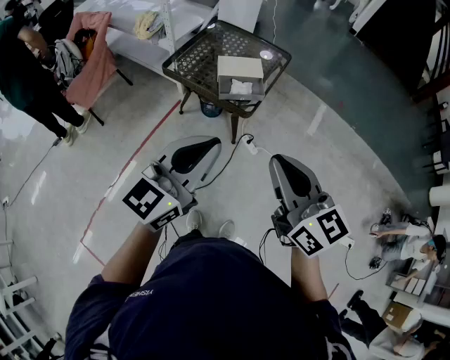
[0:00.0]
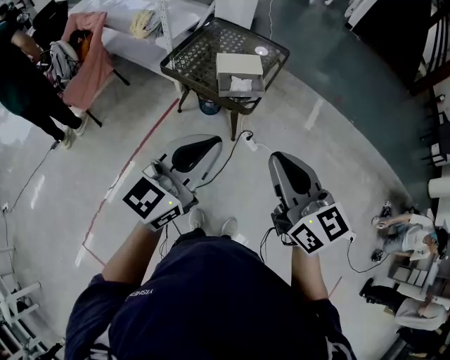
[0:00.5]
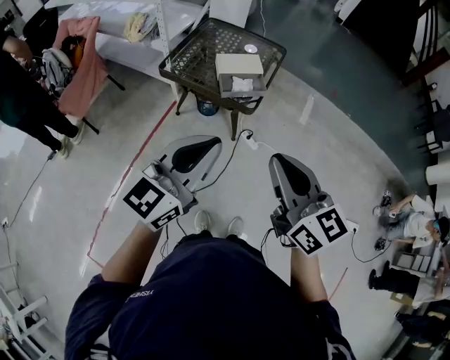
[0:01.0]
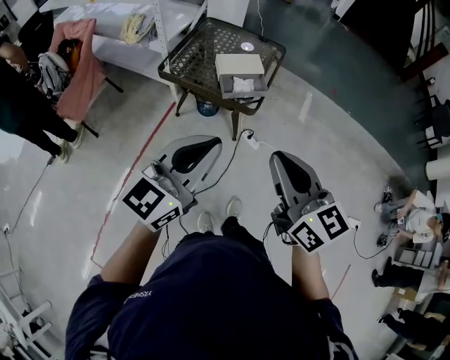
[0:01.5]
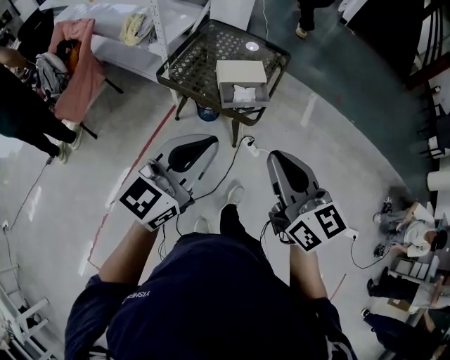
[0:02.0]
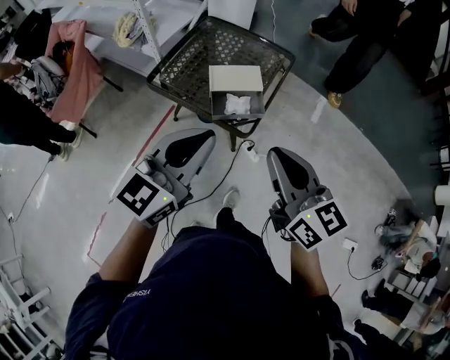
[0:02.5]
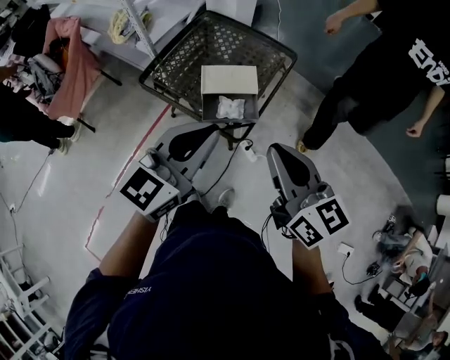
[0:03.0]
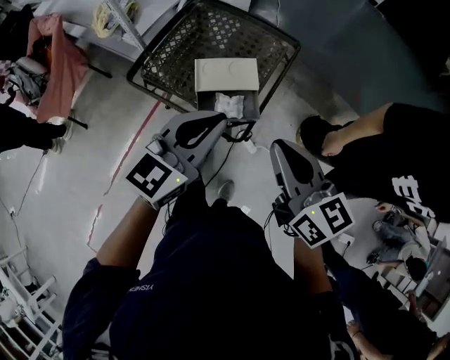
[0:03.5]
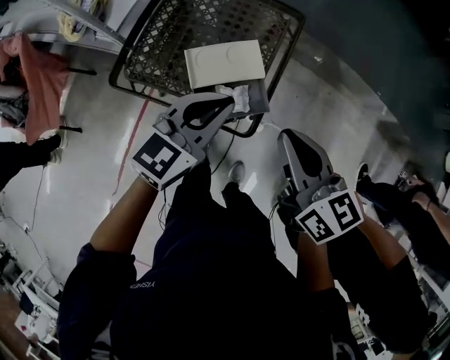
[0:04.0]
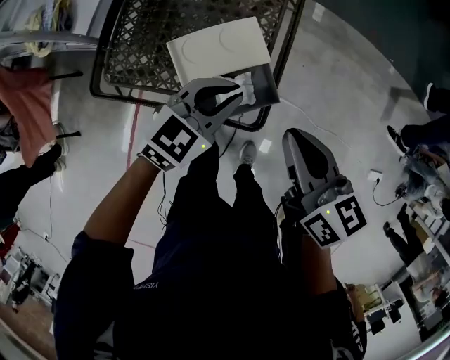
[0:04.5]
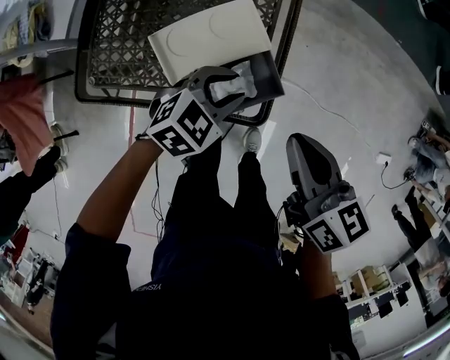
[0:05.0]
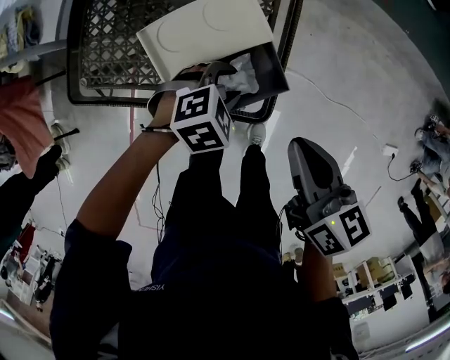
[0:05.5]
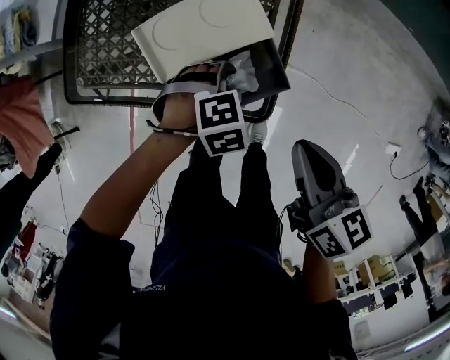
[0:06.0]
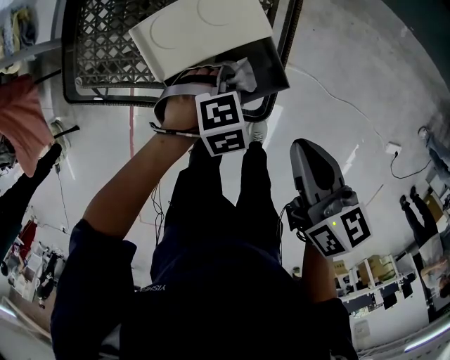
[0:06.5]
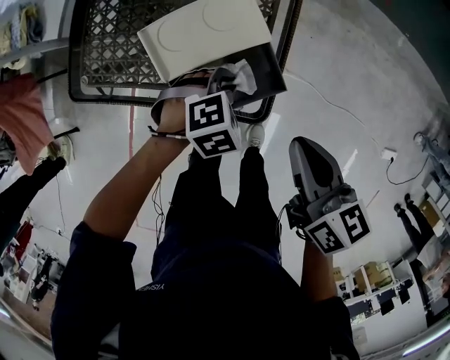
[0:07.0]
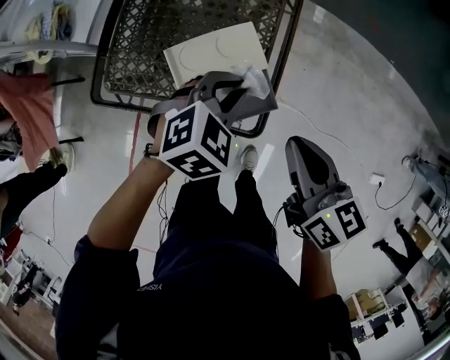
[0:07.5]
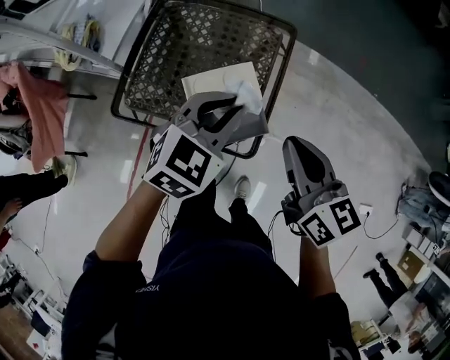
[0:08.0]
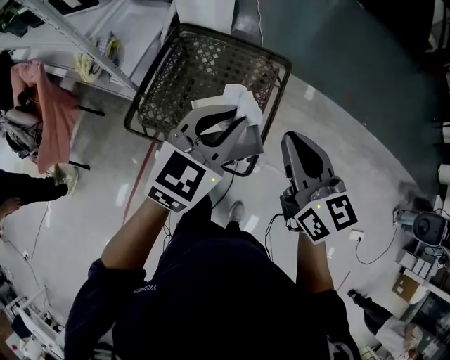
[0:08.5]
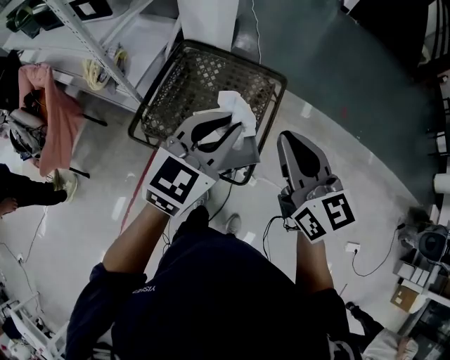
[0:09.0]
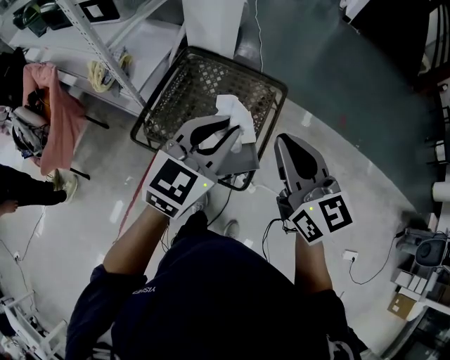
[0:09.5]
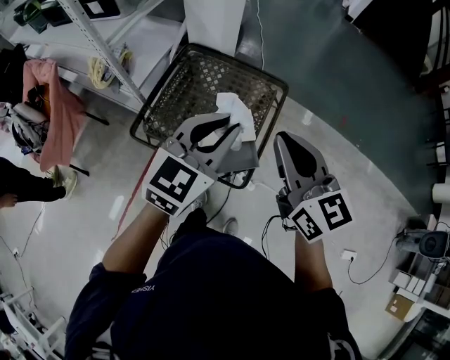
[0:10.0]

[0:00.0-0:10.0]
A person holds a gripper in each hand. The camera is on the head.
0.0 to 2.0 s: The two grippers go approximately 10 cm to the left and forward.
2.0 to 4.0 s: The left gripper travels forward and downward by roughly 40 cm. Meanwhile the right gripper is displaced forward by approximately 35 cm.
4.0 to 6.0 s: The right gripper goes roughly 20 cm downward, and rotates about 30 degrees. The left gripper moves downward, about 30 cm, points its fingers about 60 degrees further downward, and opens.
6.0 to 8.0 s: The left gripper travels upward by about 30 cm, tilts its fingers roughly 40 degrees upward, and closes its fingers, while the right gripper shifts approximately 20 cm upward, and rotates about 20 degrees.
8.0 to 10.0 s: Both grippers move upward, about 15 cm. The left gripper rotates approximately 20 degrees. The right gripper changes its angle by roughly 20 degrees.

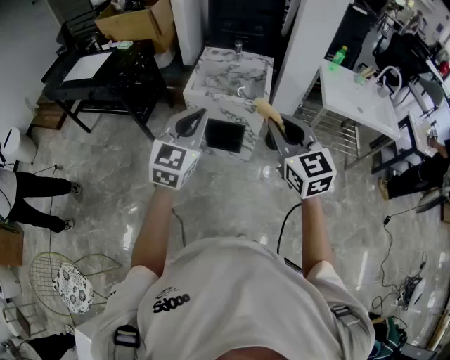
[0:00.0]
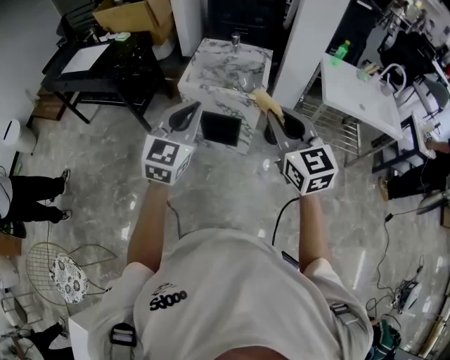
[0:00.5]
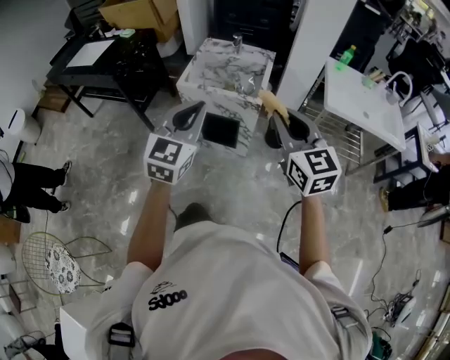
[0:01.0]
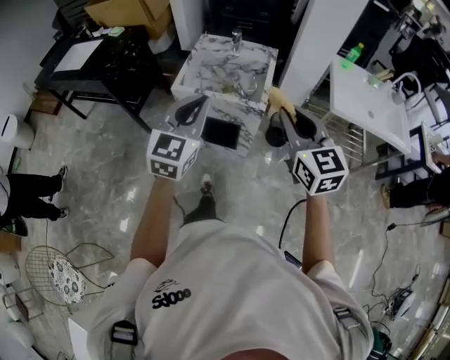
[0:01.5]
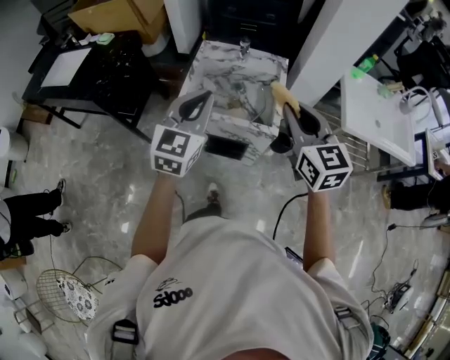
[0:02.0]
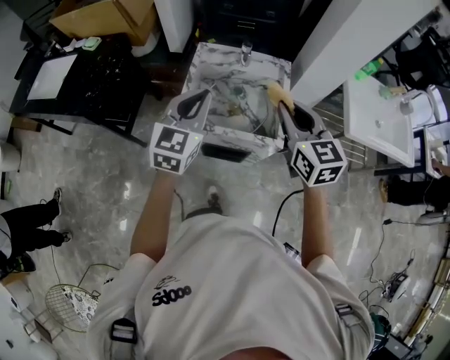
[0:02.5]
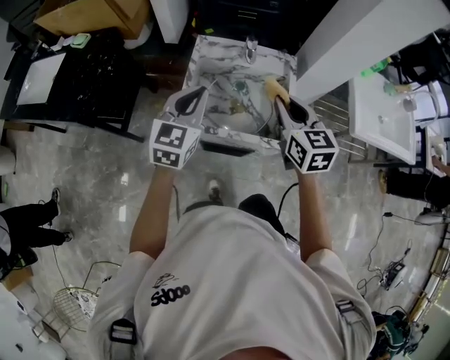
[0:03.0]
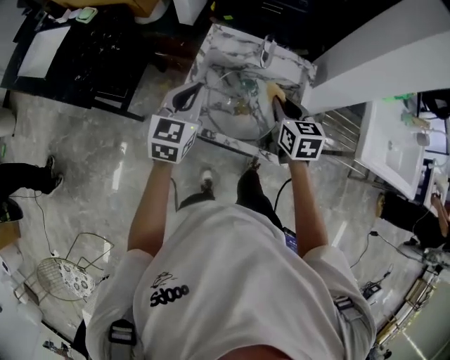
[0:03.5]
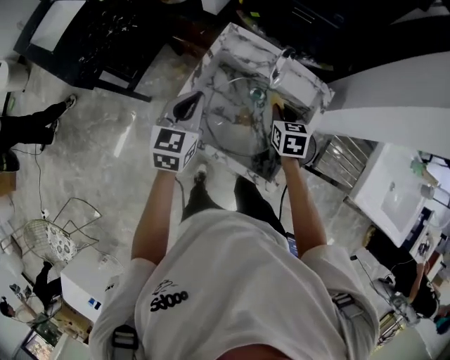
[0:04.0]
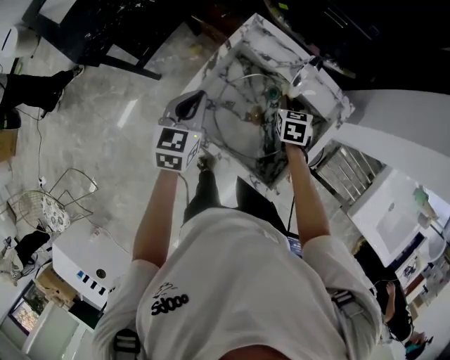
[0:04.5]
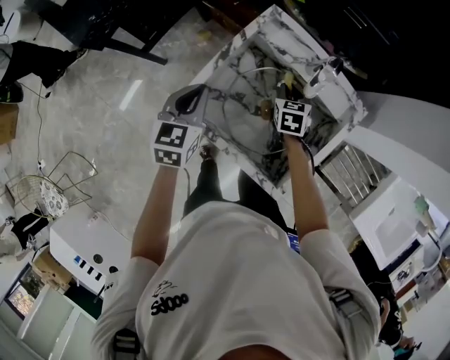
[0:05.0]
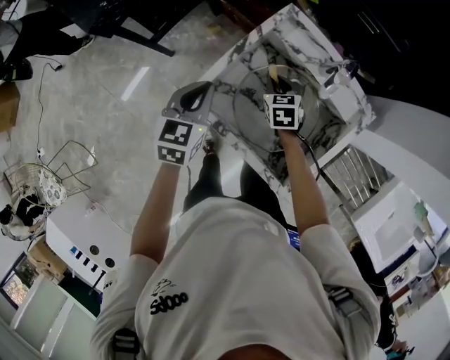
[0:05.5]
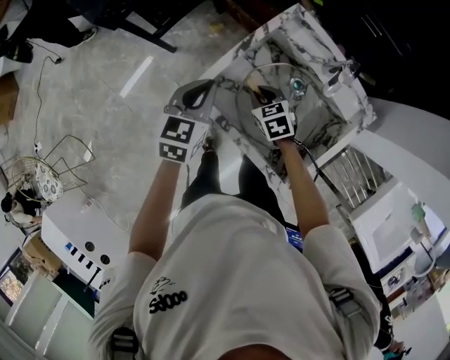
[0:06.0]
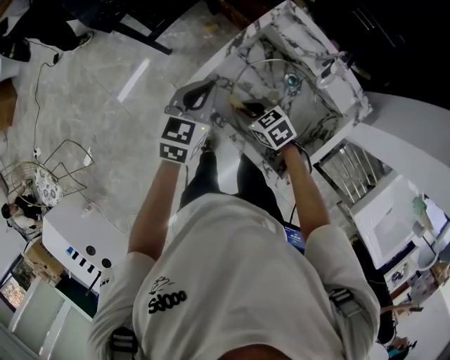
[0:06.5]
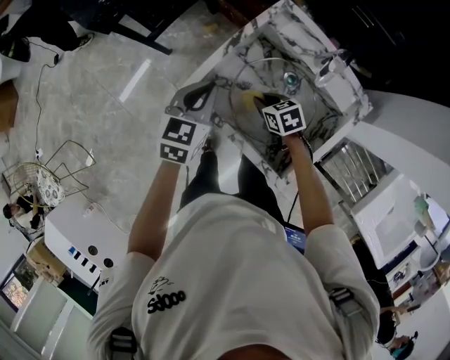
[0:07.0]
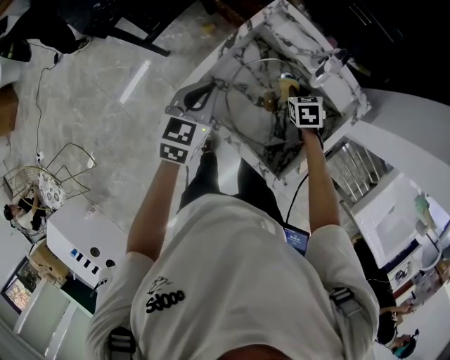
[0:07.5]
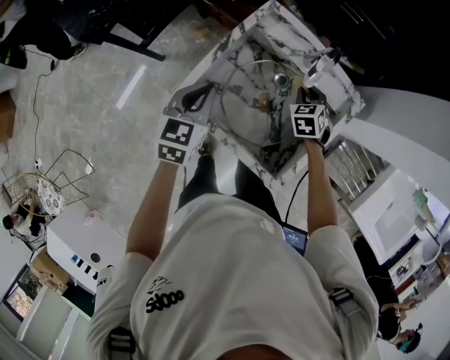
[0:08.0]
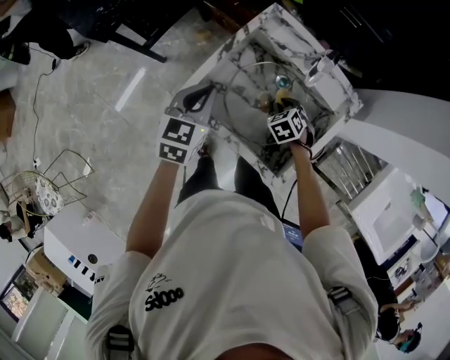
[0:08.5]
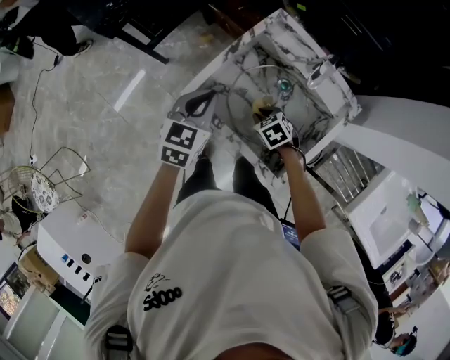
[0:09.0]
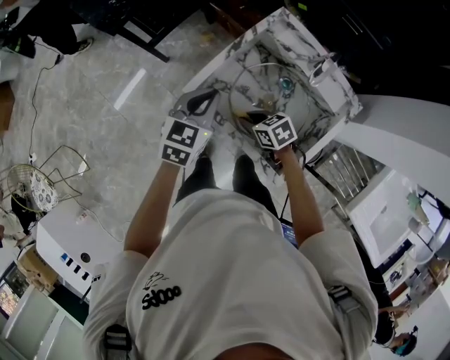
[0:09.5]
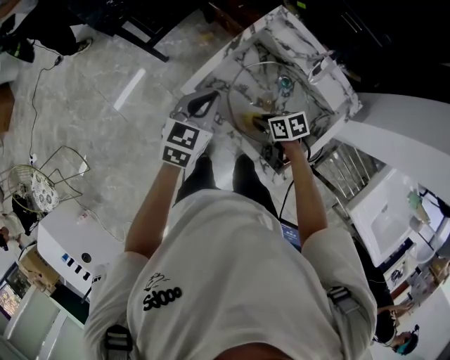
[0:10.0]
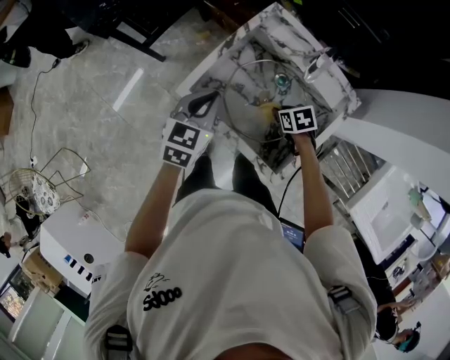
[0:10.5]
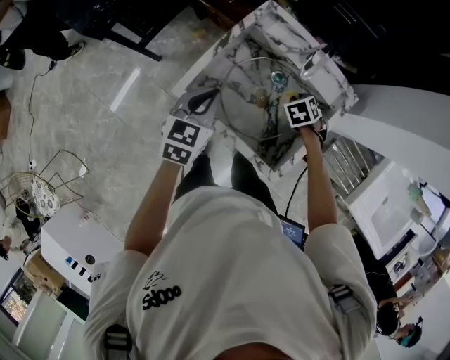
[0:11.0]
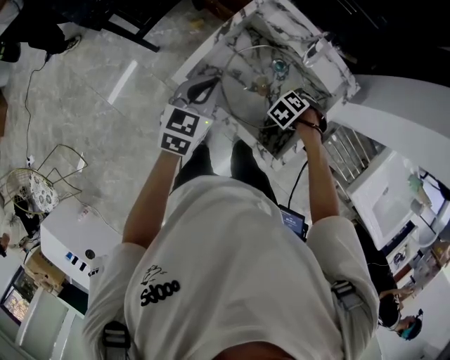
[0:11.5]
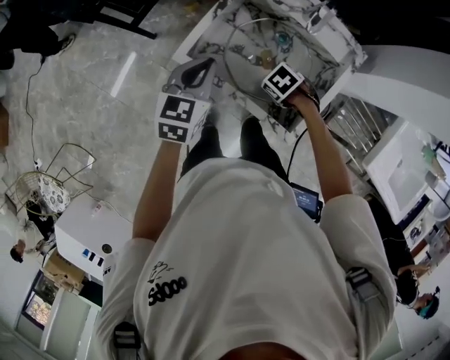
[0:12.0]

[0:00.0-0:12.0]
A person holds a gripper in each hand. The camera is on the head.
0.0 to 2.0 s: Both grippers travel together forward, some 30 cm.
2.0 to 4.0 s: The right gripper shifts roughly 50 cm forward and downward, and tilts its fingers about 40 degrees downward. The left gripper moves forward and downward, approximately 30 cm, and changes its angle by roughly 30 degrees.
4.0 to 6.0 s: The left gripper changes place by some 10 cm; the right gripper changes place by roughly 20 cm, and swivels about 40 degrees.
6.0 to 8.0 s: The right gripper moves roughly 20 cm, and changes its angle by roughly 30 degrees.
8.0 to 10.0 s: The right gripper changes place by roughly 20 cm, and changes its angle by about 50 degrees.
10.0 to 12.0 s: The right gripper changes its angle by roughly 40 degrees.

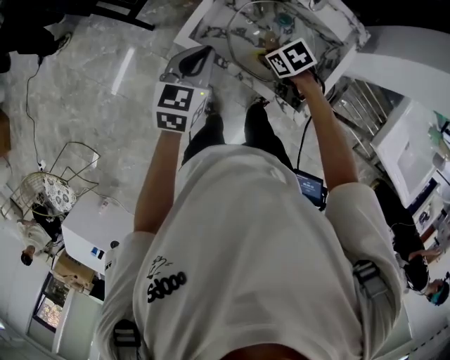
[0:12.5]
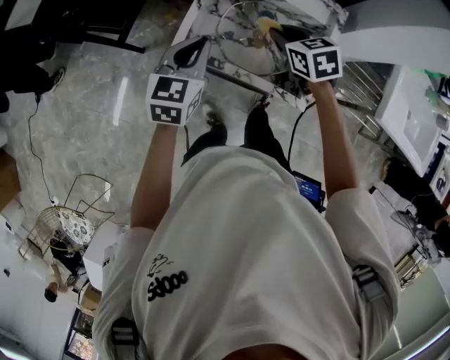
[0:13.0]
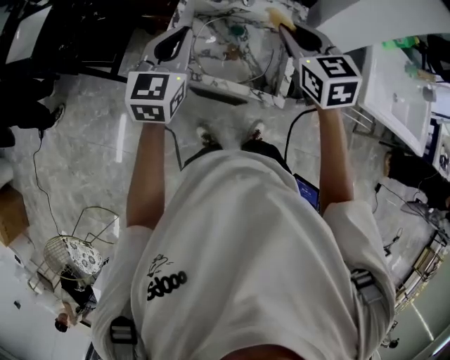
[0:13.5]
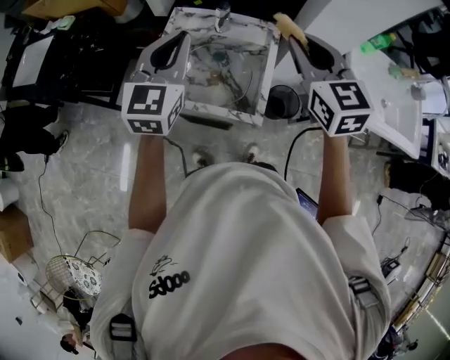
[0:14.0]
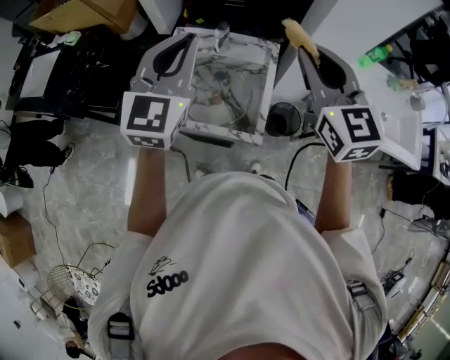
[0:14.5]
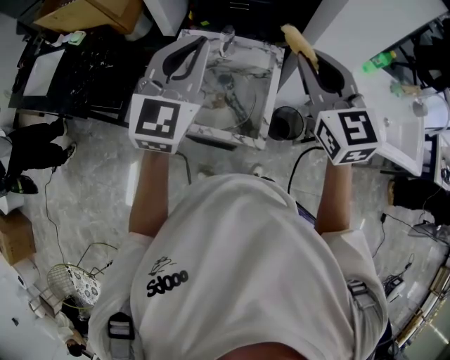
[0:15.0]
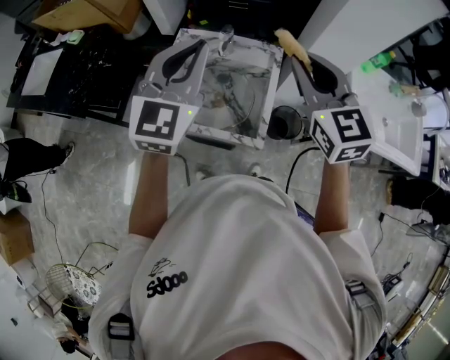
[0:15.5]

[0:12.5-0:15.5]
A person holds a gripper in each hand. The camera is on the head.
12.5 to 14.0 s: The right gripper goes about 40 cm upward, and points its fingers roughly 50 degrees further upward; the left gripper moves upward, some 25 cm, and turns by roughly 30 degrees.
14.0 to 15.5 s: The left gripper is displaced upward by some 5 cm.

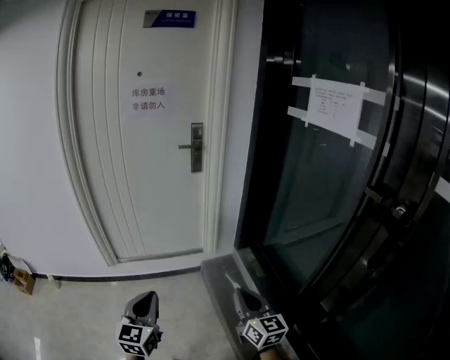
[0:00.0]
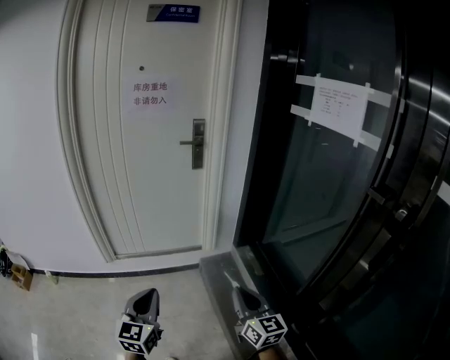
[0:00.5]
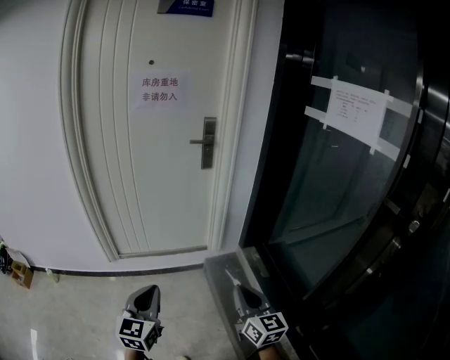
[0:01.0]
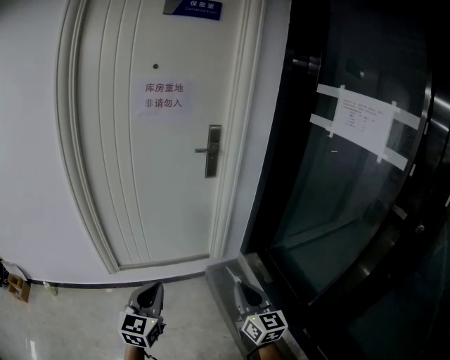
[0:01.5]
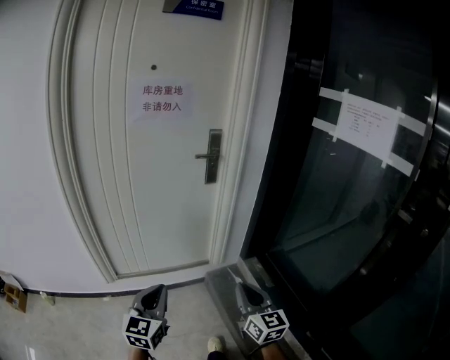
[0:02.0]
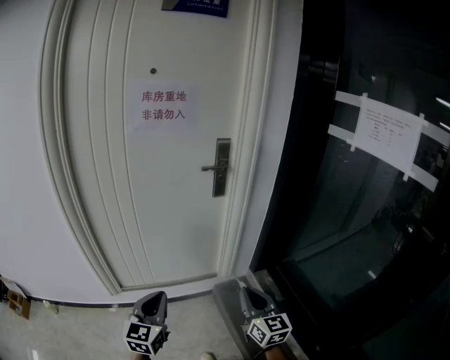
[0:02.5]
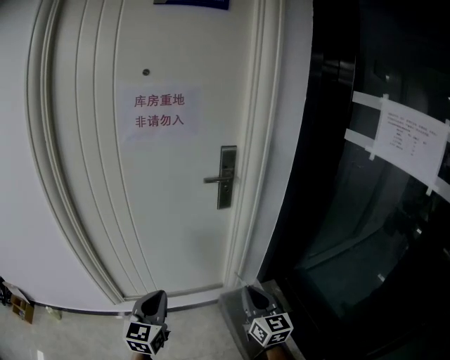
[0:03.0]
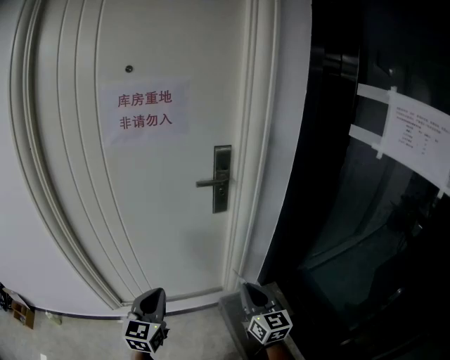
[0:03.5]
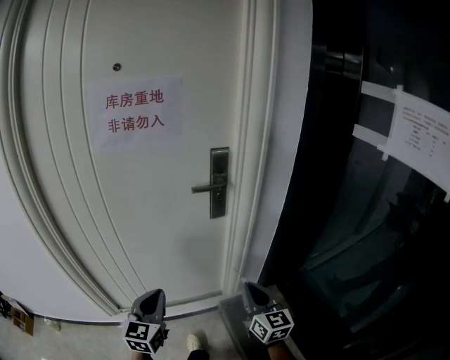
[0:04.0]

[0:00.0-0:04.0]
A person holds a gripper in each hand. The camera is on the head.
0.0 to 2.0 s: Both grippers travel together forward and to the left, roughly 20 cm.
2.0 to 4.0 s: The two grippers go about 30 cm forward.
